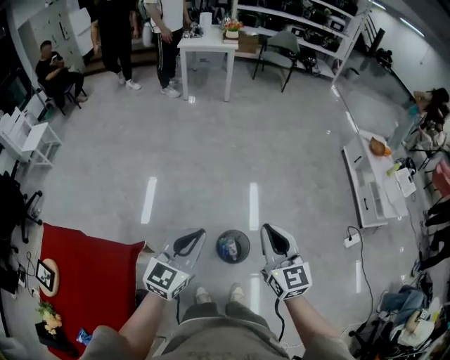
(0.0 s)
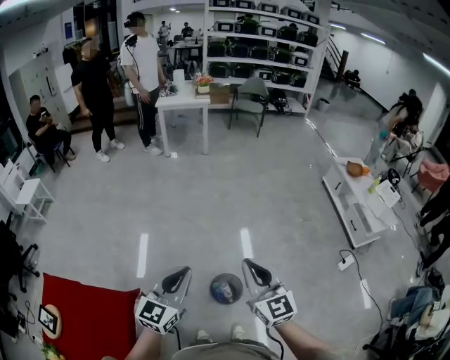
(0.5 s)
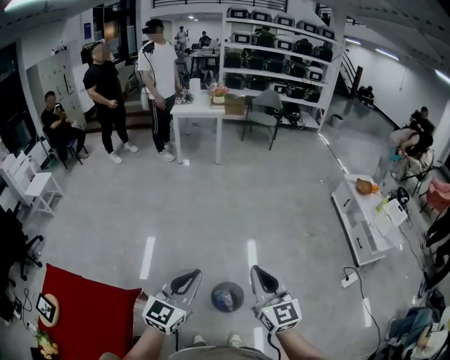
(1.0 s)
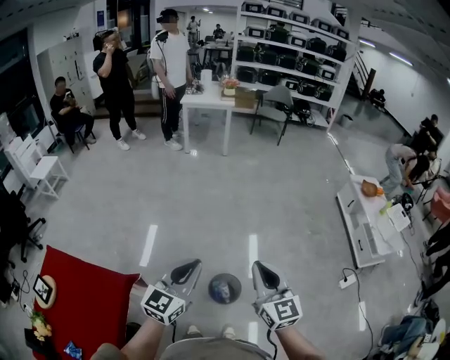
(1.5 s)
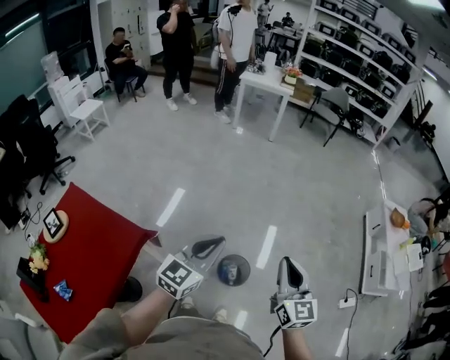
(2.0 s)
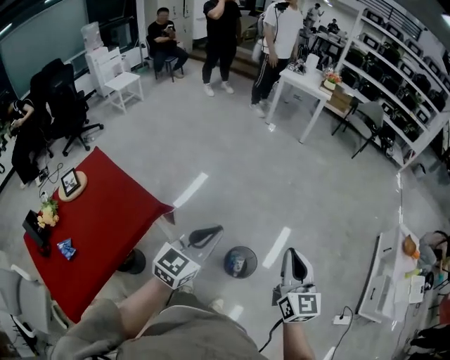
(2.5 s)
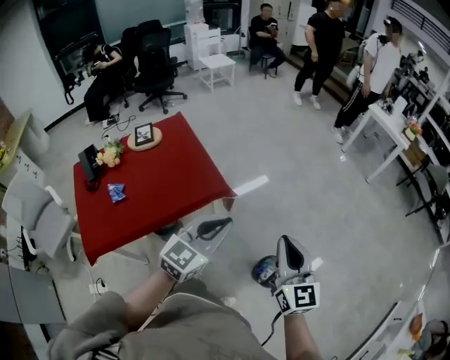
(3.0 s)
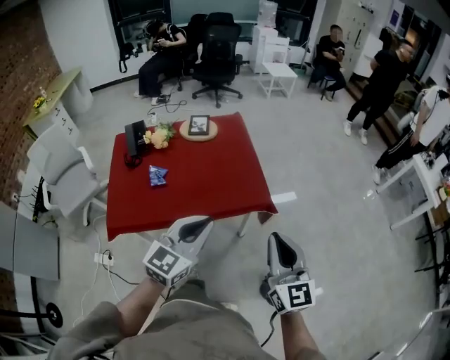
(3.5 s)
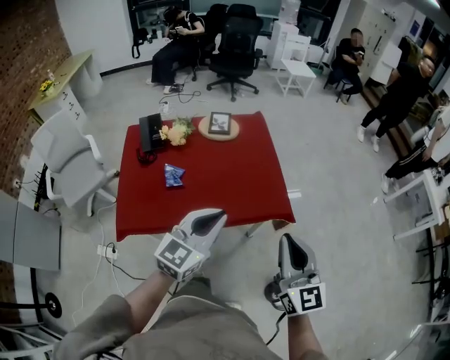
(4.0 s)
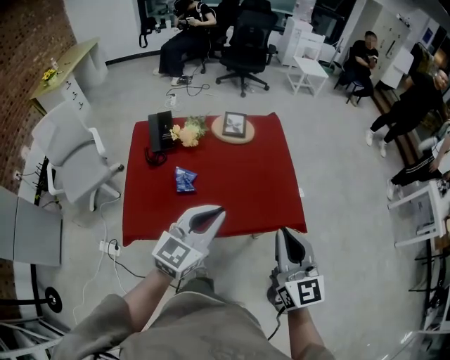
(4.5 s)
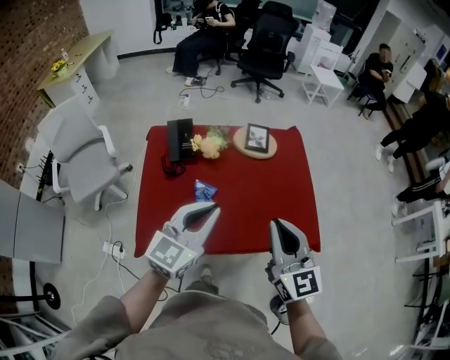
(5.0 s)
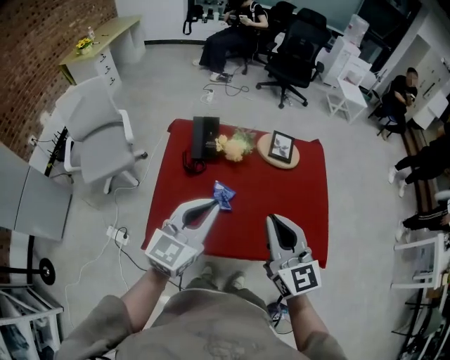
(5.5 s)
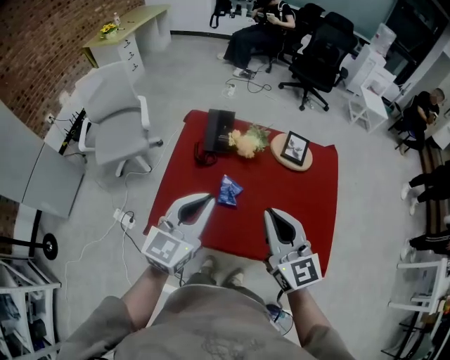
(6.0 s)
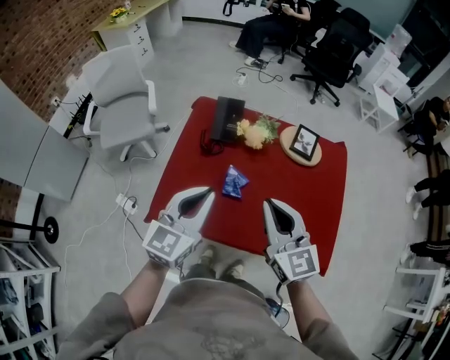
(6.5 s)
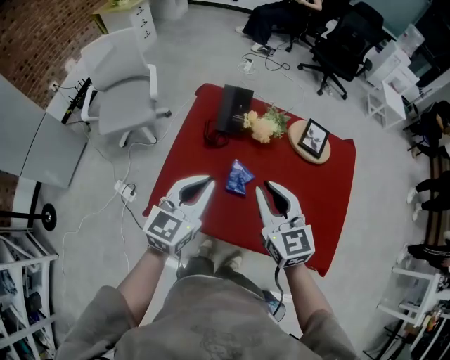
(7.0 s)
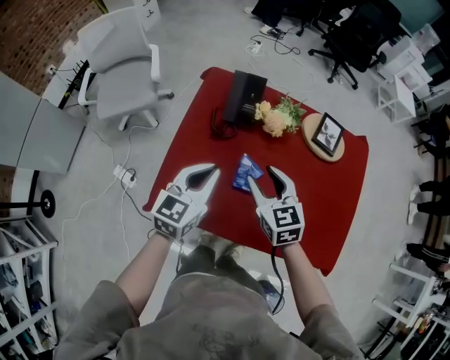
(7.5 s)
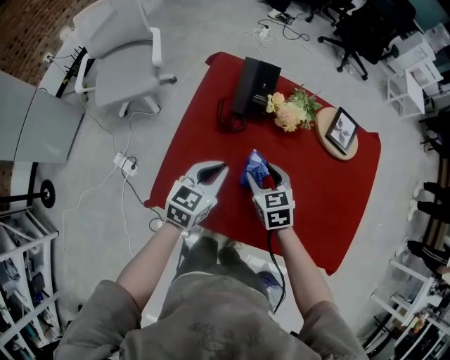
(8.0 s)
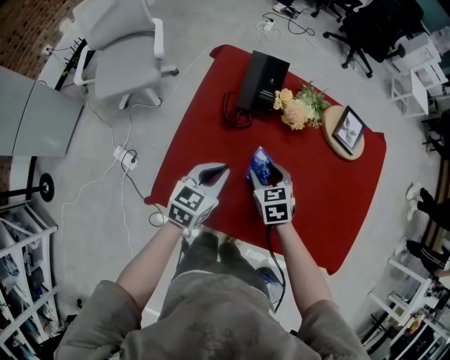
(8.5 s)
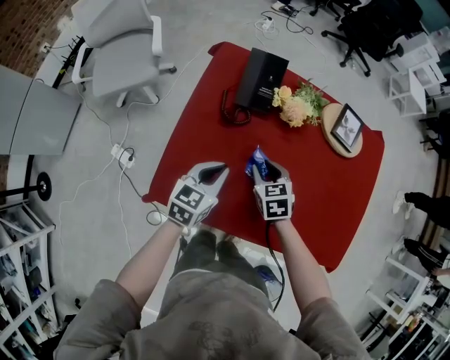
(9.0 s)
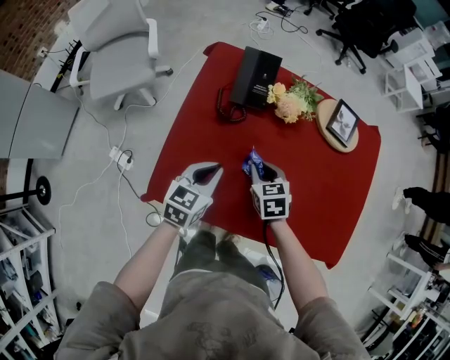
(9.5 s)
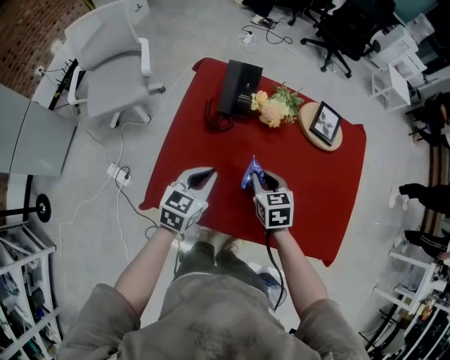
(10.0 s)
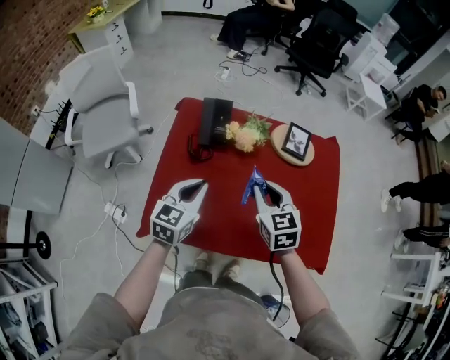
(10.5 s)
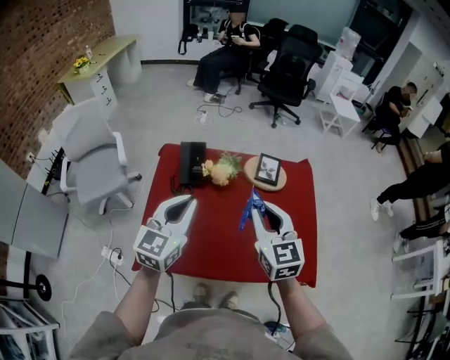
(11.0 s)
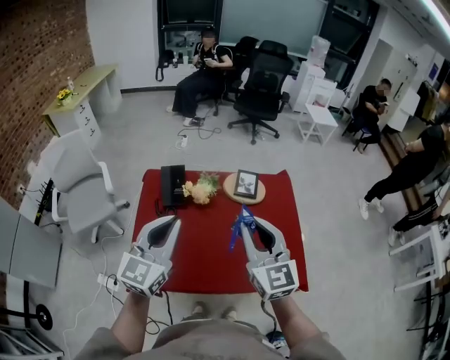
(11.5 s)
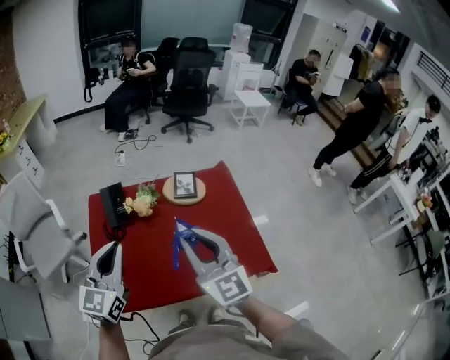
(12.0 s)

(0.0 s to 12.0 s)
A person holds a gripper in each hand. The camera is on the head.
0.0 s - 2.0 s: The left gripper heads upward, covering roughly 5 cm; the right gripper shifts approximately 10 cm to the right and upward.
2.0 s - 4.0 s: The pair of grippers is taken some 40 cm. The left gripper swivels about 60 degrees. The right gripper turns by about 70 degrees.
4.0 s - 6.0 s: The left gripper moves roughly 30 cm, and changes its angle by some 30 degrees. The right gripper ends up approximately 35 cm from where it was, and rotates approximately 30 degrees.
6.0 s - 8.0 s: Both grippers move downward and forward, some 30 cm. The left gripper turns by about 20 degrees, while the right gripper tilts its fingers some 40 degrees downward, and opens.
8.0 s - 10.0 s: The right gripper changes place by roughly 5 cm, and closes up.
10.0 s - 12.0 s: Both grippers travel together upward, about 35 cm. The right gripper tips its fingers upward by some 50 degrees, while the left gripper rotates about 30 degrees.

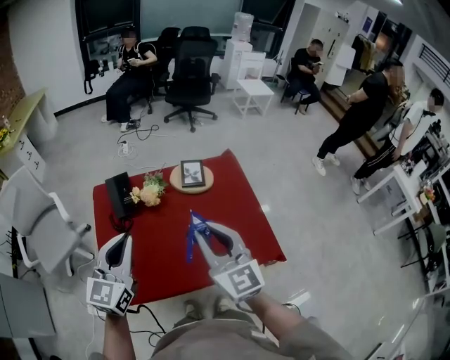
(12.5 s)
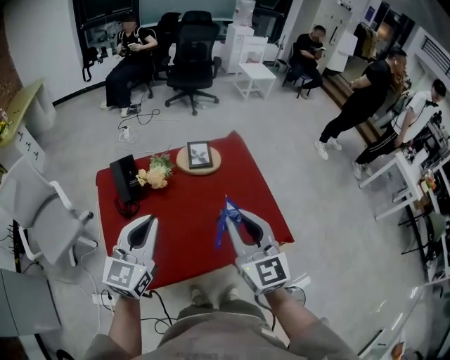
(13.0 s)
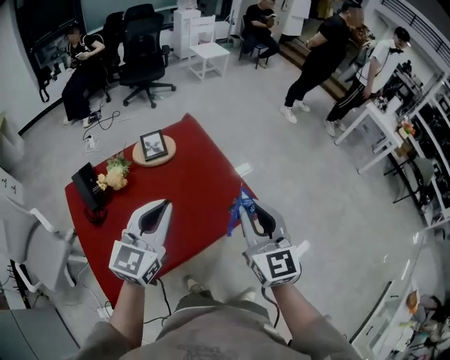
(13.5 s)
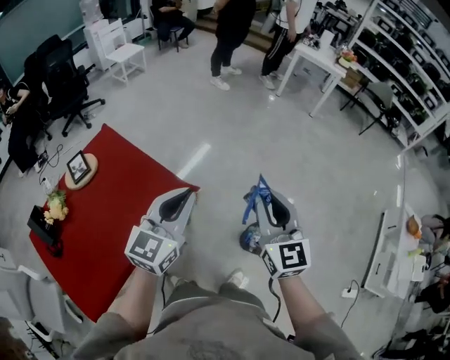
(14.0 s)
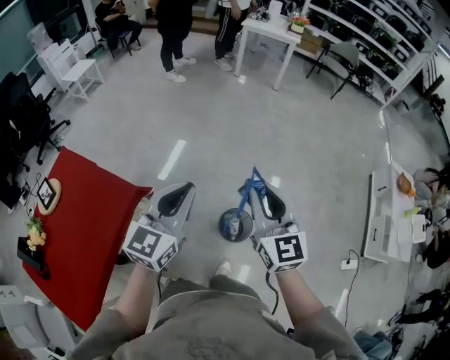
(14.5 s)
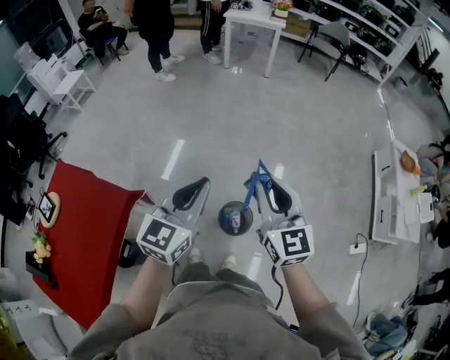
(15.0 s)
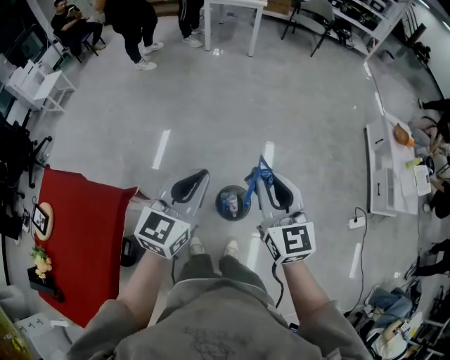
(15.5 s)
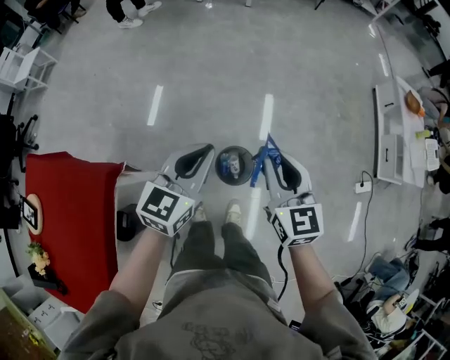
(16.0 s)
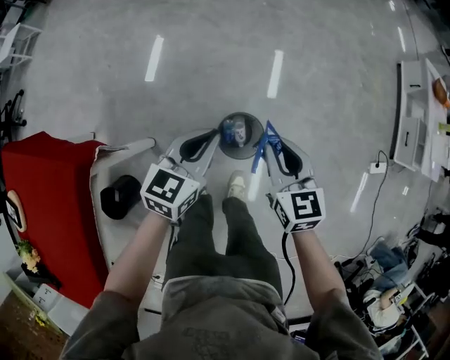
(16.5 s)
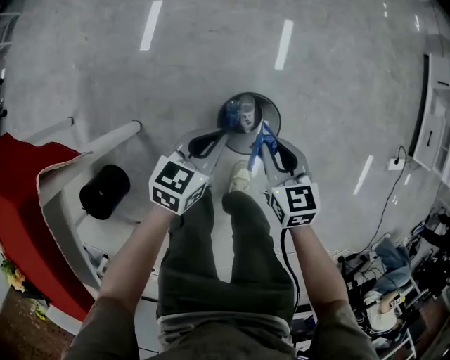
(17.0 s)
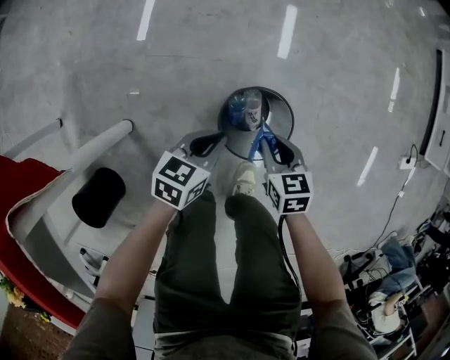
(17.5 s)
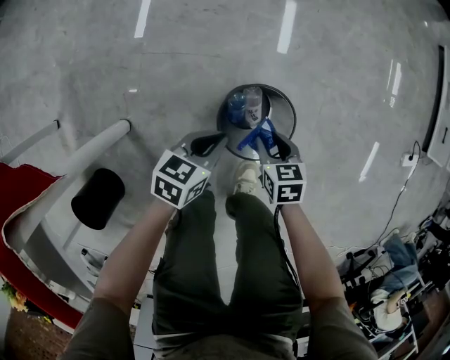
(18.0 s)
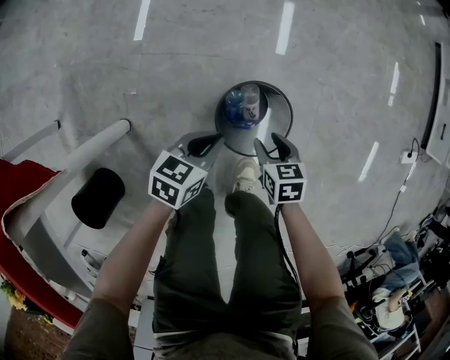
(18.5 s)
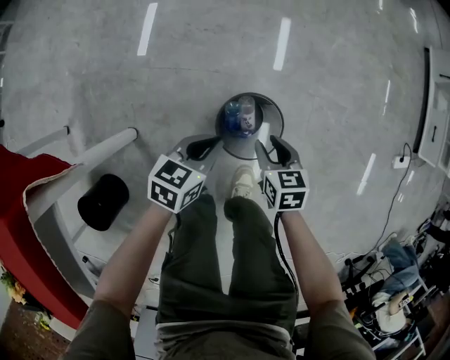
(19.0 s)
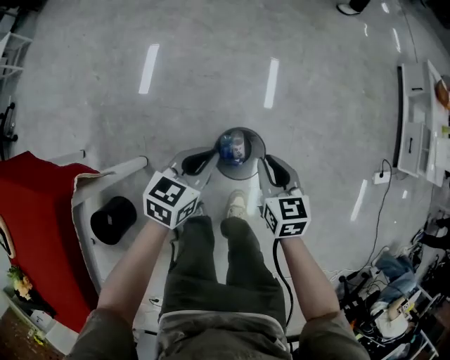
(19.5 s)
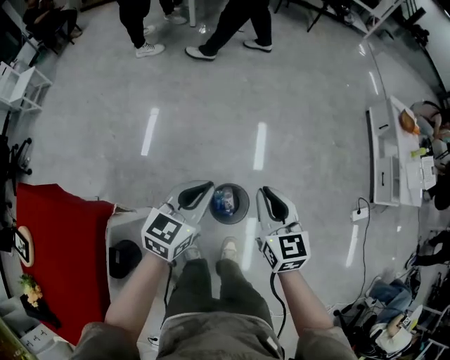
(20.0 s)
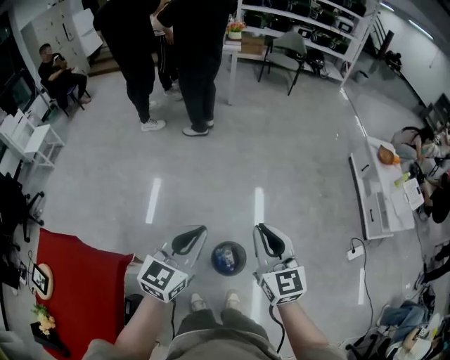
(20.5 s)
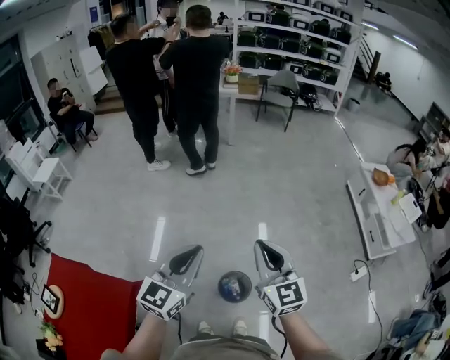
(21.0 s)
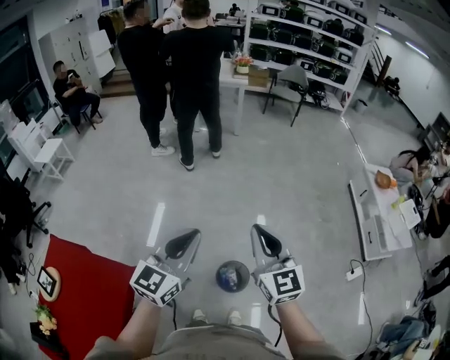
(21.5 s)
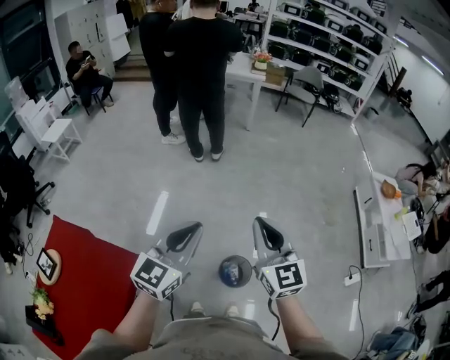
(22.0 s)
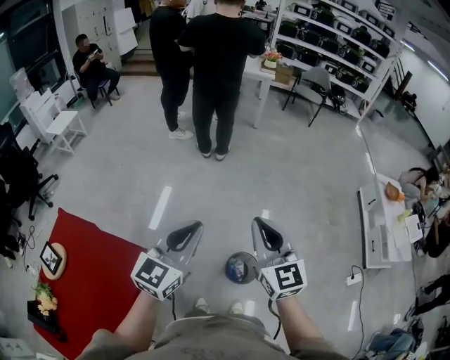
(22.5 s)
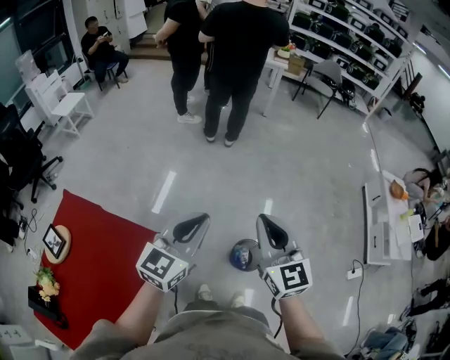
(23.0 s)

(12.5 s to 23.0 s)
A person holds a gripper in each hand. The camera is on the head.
12.5 s - 14.5 s: The pair of grippers is taken about 70 cm. The left gripper rotates approximately 70 degrees, while the right gripper changes its angle by roughly 70 degrees.
14.5 s - 16.5 s: Both grippers travel together downward, about 40 cm. The right gripper rotates roughly 30 degrees. Meanwhile the left gripper rotates roughly 30 degrees.
16.5 s - 19.0 s: The two grippers go roughly 35 cm downward. The right gripper turns by some 20 degrees. The left gripper changes its angle by about 20 degrees.
19.0 s - 21.0 s: Both grippers move upward, some 80 cm. The left gripper points its fingers approximately 40 degrees further upward, while the right gripper angles its fingers upward, by approximately 50 degrees, and closes up.
21.0 s - 23.0 s: The grippers both shift to the left by roughly 15 cm.

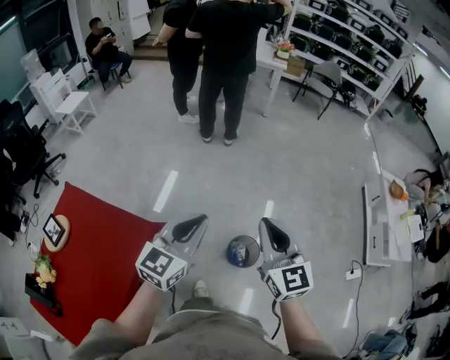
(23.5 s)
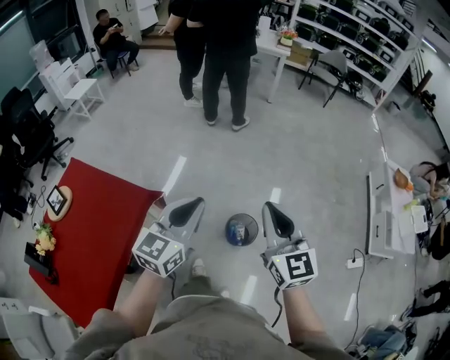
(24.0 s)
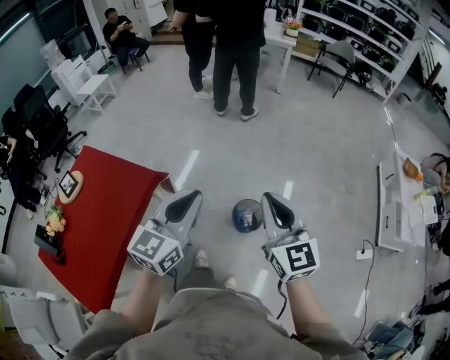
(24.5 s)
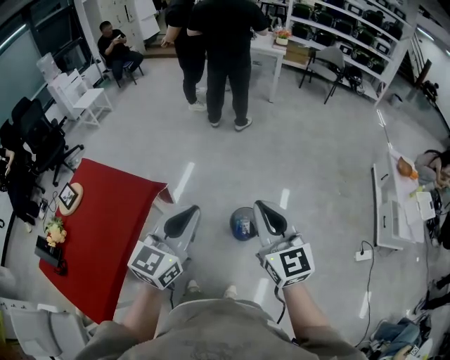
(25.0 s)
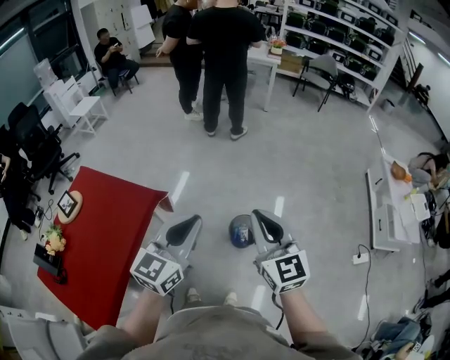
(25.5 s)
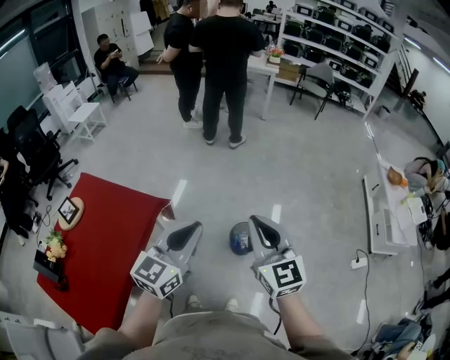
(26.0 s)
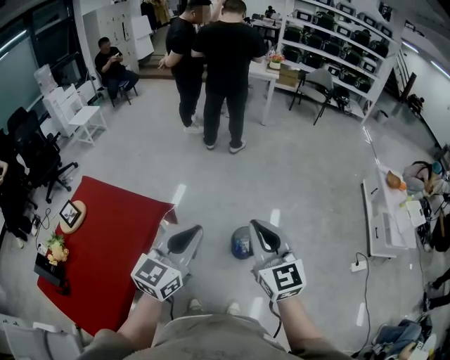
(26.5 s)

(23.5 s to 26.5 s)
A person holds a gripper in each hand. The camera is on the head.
23.5 s - 25.0 s: The left gripper heads backward, covering approximately 20 cm. Meanwhile the right gripper travels backward and to the right by about 20 cm.
25.0 s - 26.5 s: Both grippers move to the left, some 10 cm.

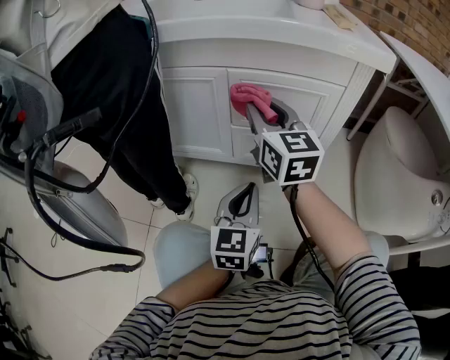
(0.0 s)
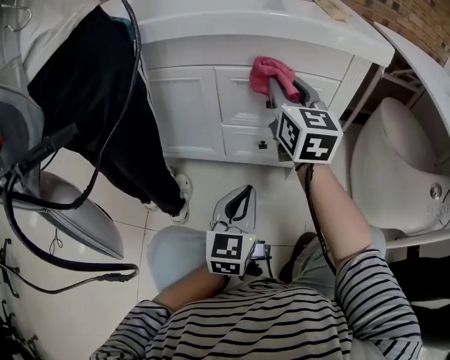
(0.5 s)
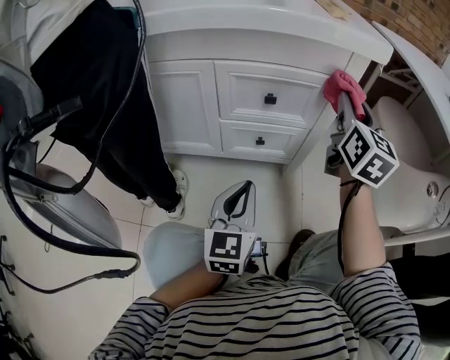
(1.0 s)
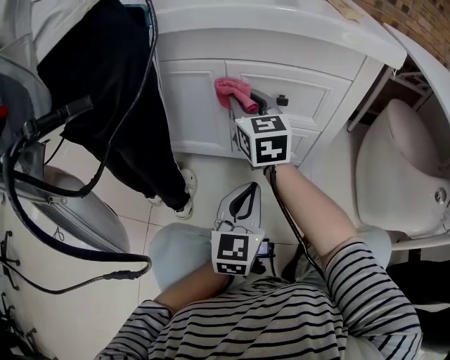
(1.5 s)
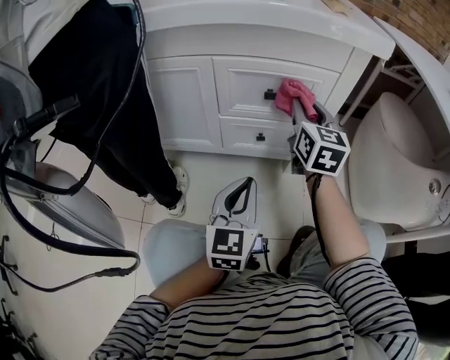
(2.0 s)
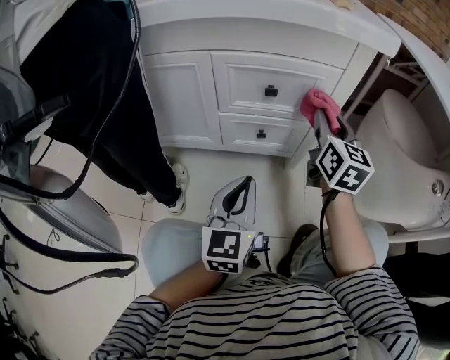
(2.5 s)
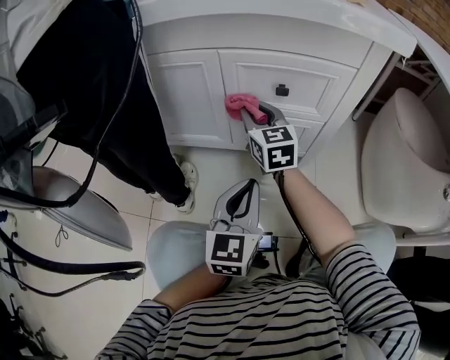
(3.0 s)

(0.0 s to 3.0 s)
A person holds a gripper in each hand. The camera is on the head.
0.0 s - 1.5 s: The right gripper heads downward, covering about 5 cm, and moves some 25 cm to the right and comes back.
1.5 s - 3.0 s: The right gripper is displaced downward by some 10 cm, and travels to the right and back again, about 25 cm each way.
